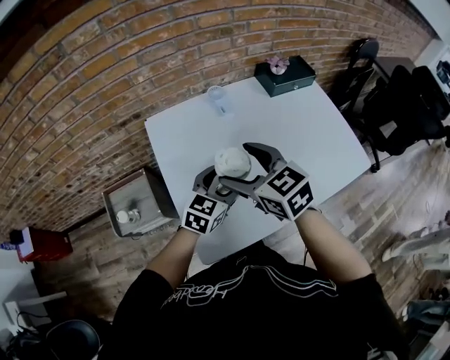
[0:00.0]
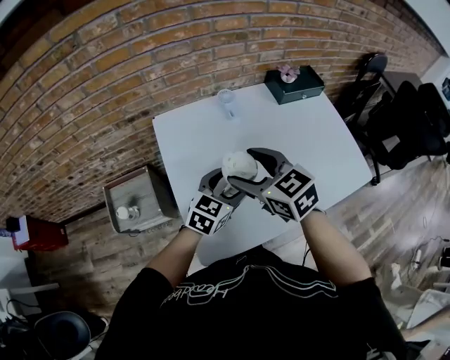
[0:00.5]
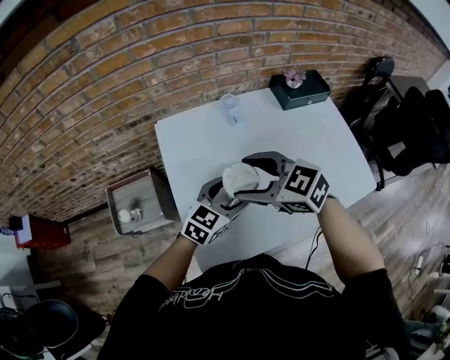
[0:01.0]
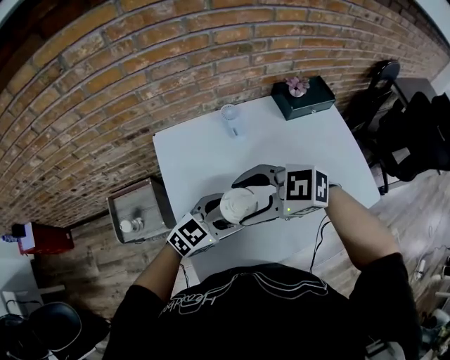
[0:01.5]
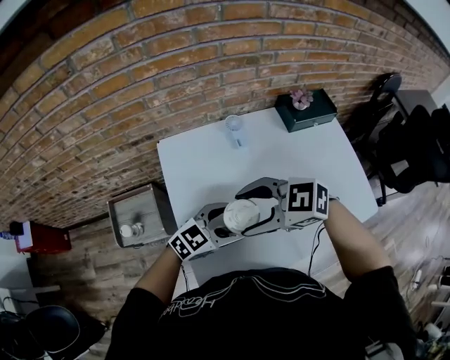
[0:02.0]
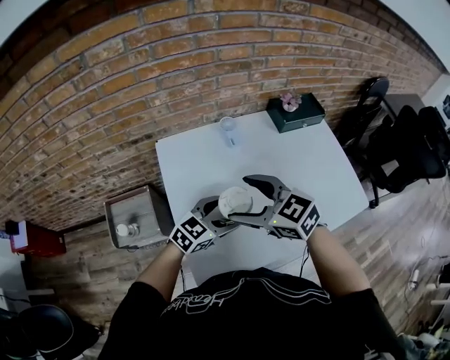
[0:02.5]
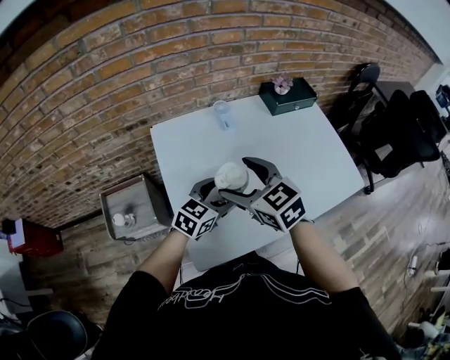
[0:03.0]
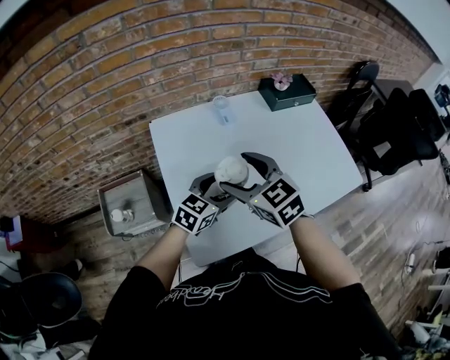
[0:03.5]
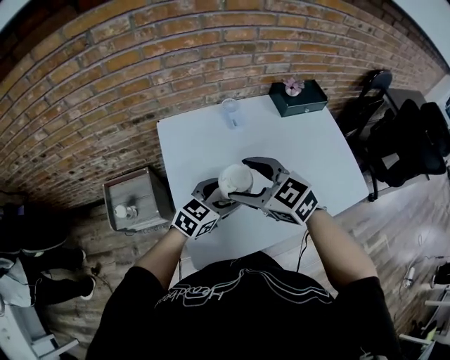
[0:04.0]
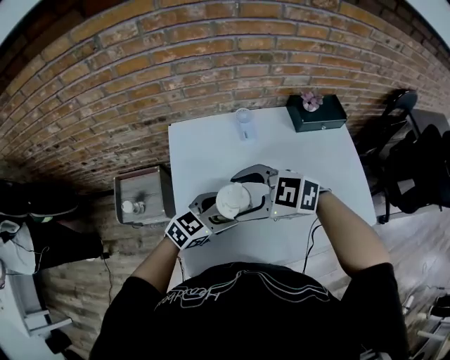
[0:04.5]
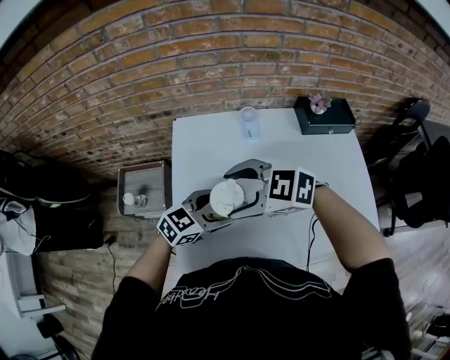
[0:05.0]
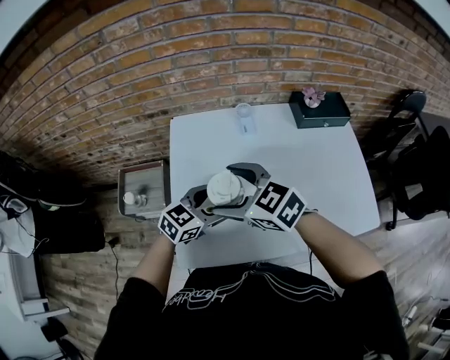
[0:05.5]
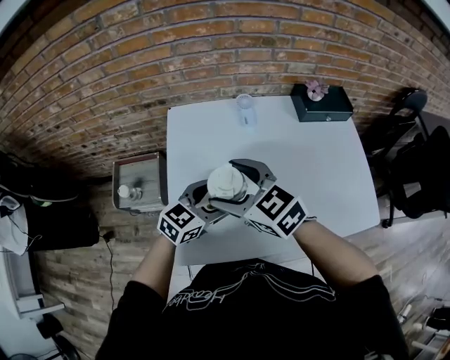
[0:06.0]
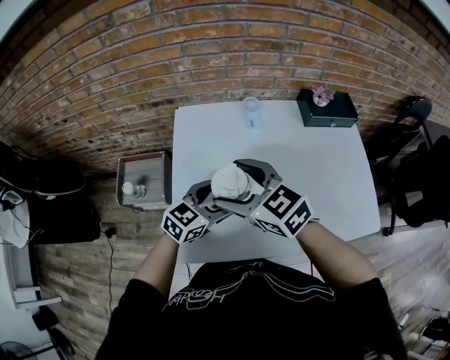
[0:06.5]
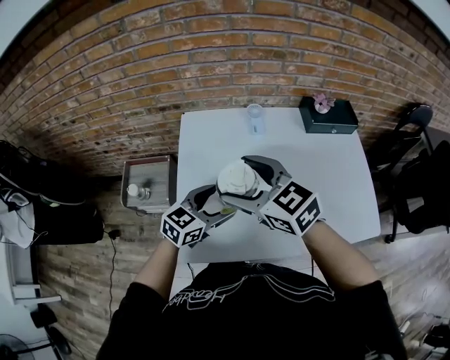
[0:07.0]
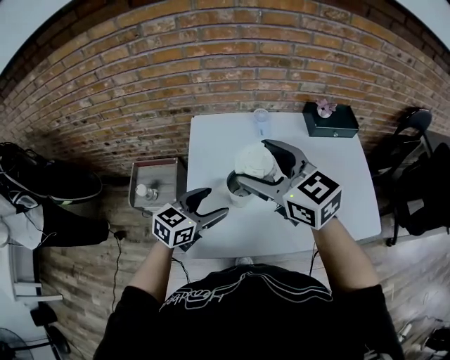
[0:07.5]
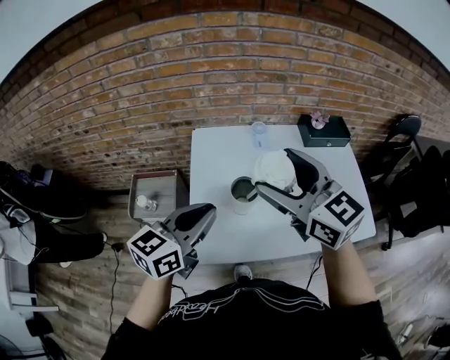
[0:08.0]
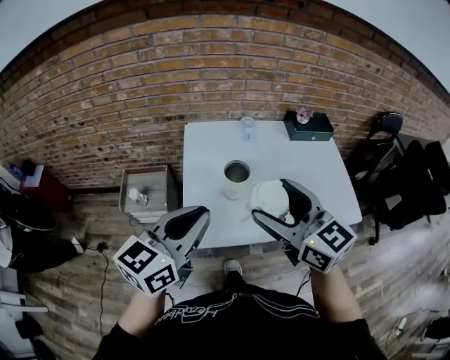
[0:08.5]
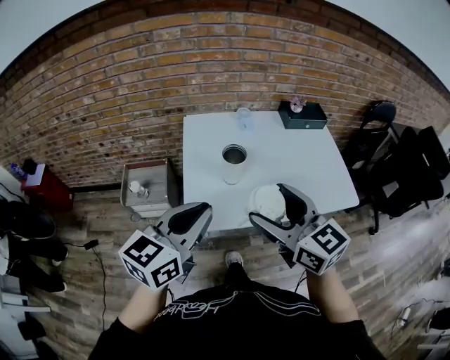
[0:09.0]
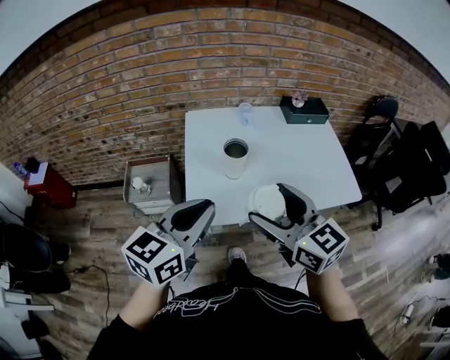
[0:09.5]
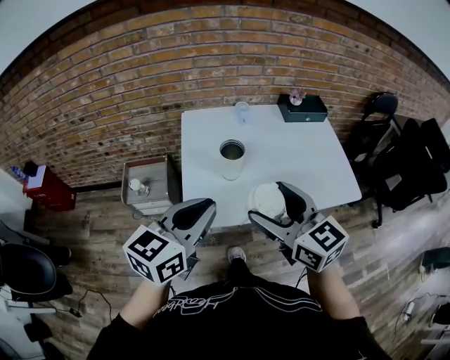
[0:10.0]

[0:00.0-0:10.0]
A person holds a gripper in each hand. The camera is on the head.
0:00.0 to 0:02.0: The right gripper rotates about 50 degrees. The left gripper changes its angle by roughly 20 degrees.
0:02.0 to 0:04.0: The right gripper turns by about 30 degrees.
0:06.0 to 0:08.0: The right gripper heads upward, covering roughly 20 cm, and rotates some 20 degrees, while the left gripper moves upward, to the left and backward, about 20 cm, rotates approximately 20 degrees, and closes.
0:08.0 to 0:10.0: Both grippers travel together backward, approximately 15 cm.

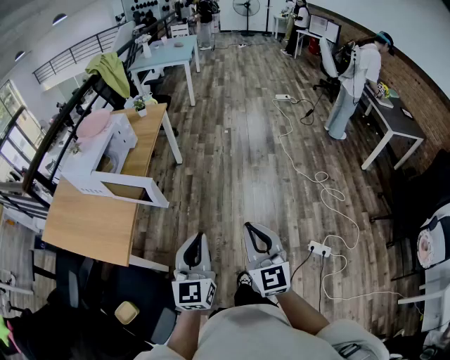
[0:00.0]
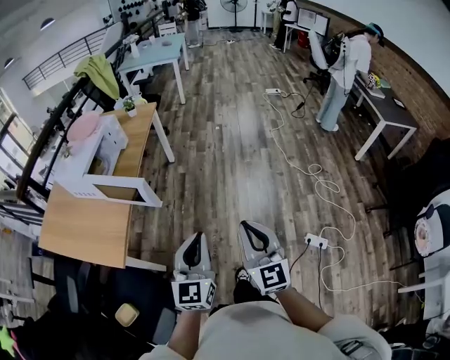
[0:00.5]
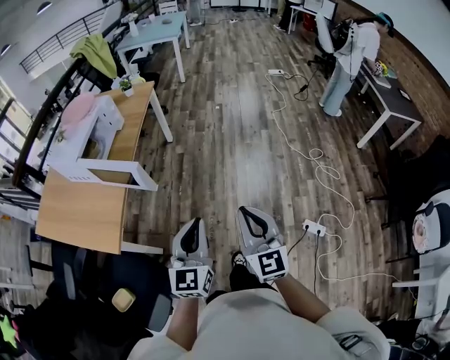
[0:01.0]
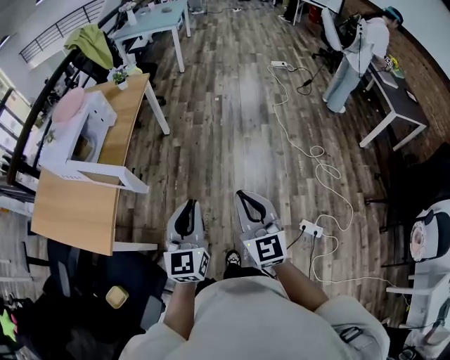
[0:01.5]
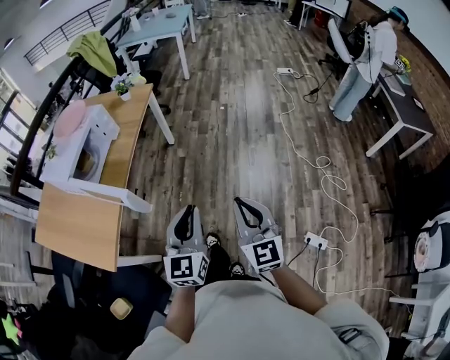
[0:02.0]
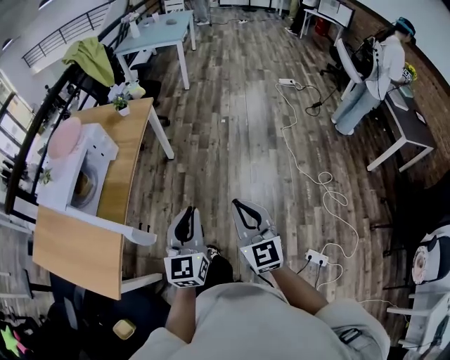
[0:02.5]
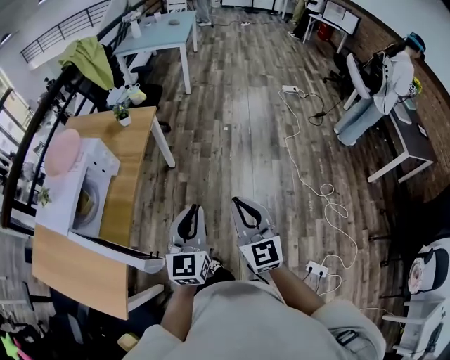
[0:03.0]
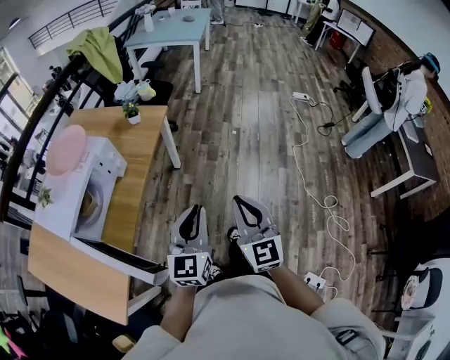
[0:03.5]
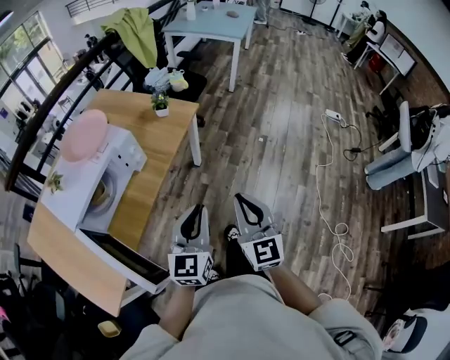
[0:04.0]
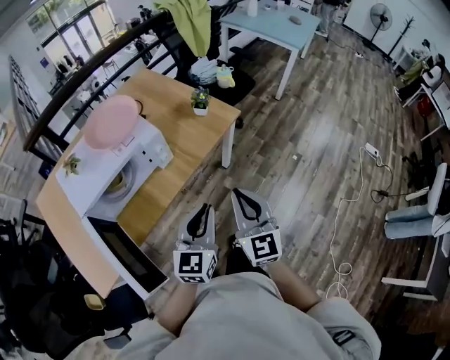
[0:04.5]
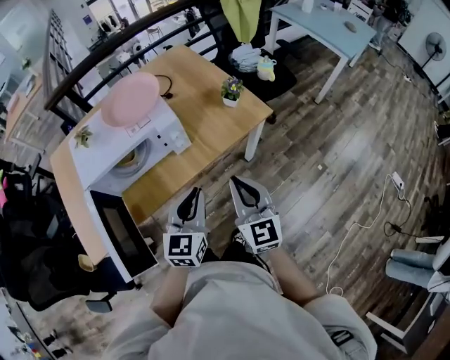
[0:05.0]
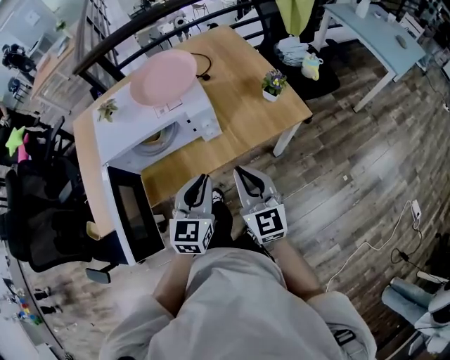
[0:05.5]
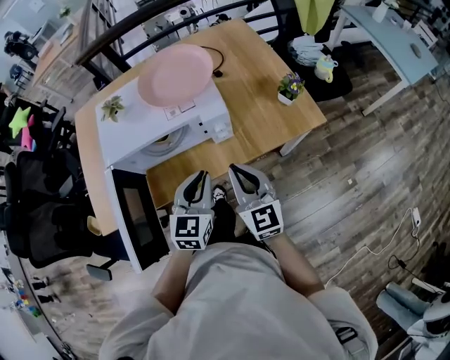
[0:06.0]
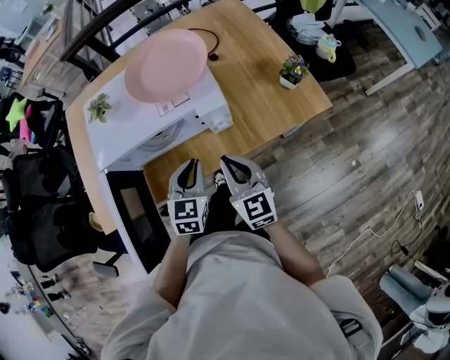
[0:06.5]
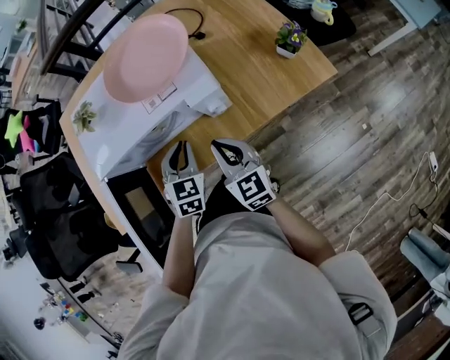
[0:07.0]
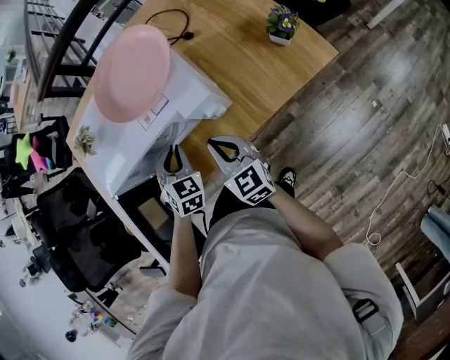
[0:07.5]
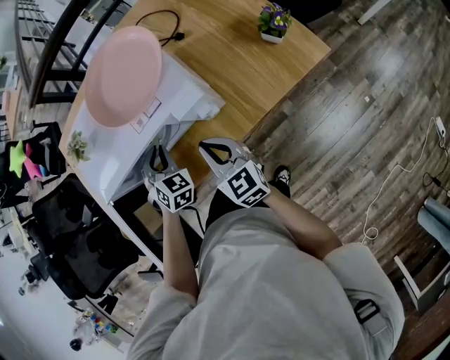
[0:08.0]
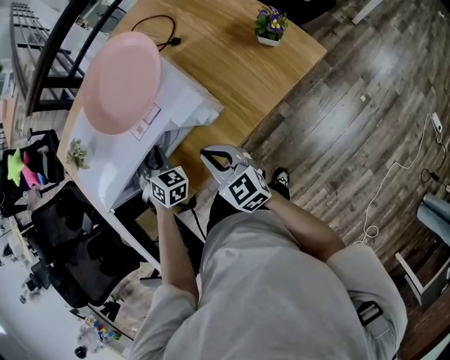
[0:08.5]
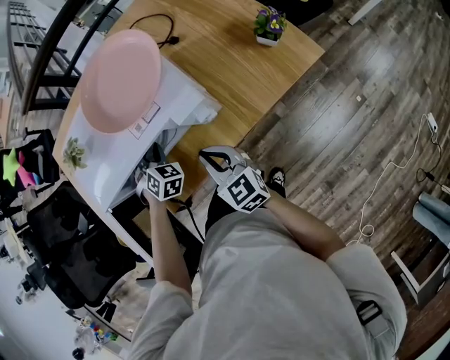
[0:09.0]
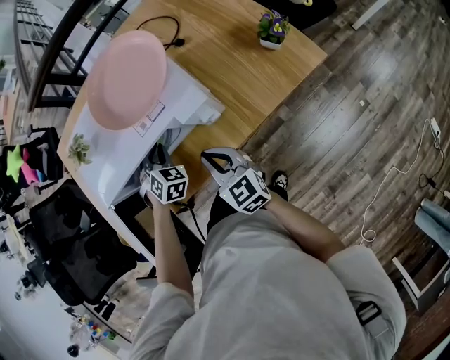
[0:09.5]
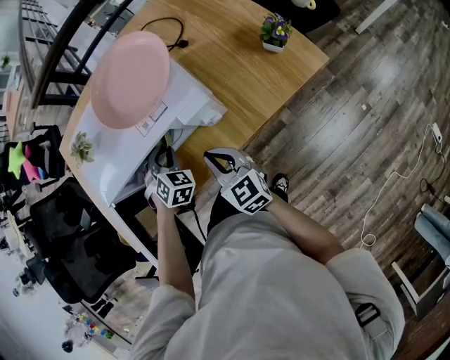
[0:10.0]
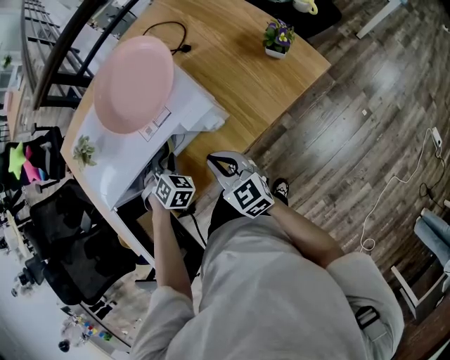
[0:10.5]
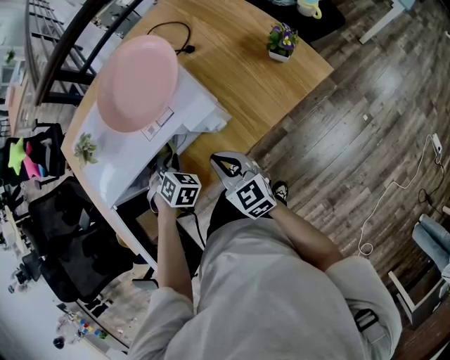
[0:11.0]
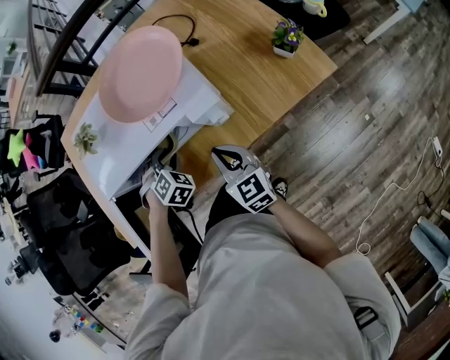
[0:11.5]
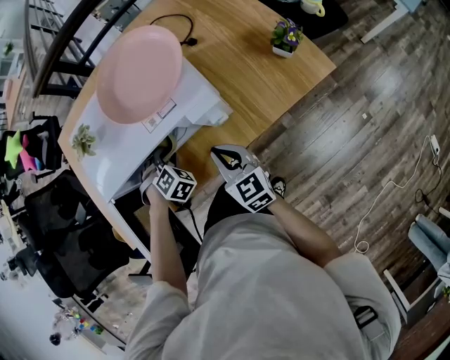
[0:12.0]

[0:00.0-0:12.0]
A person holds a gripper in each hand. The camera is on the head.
0:00.0 to 0:02.0: The two grippers go approximately 15 cm forward.
0:02.0 to 0:04.0: The two grippers go approximately 40 cm forward.
0:04.0 to 0:06.0: The left gripper moves some 25 cm, and turns by some 40 degrees. Meanwhile the right gripper shifts by about 30 cm, and changes its angle by roughly 50 degrees.
0:06.0 to 0:08.0: The right gripper moves downward, forward and to the left, about 15 cm. The left gripper is displaced forward, downward and to the left by some 25 cm, and changes its angle by roughly 50 degrees.
0:08.0 to 0:10.0: There are only small adjustments of the grippers.
0:10.0 to 0:12.0: The left gripper ends up approximately 5 cm from where it was, and rotates about 20 degrees.

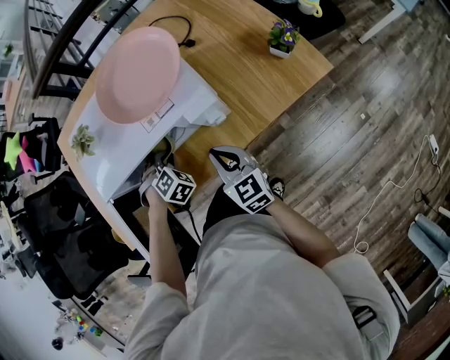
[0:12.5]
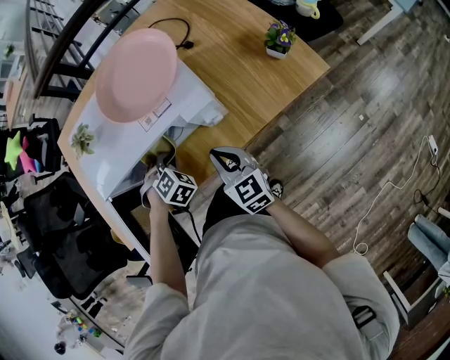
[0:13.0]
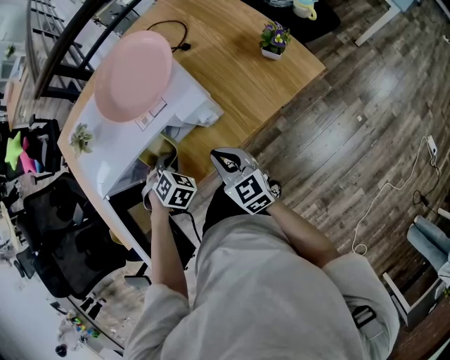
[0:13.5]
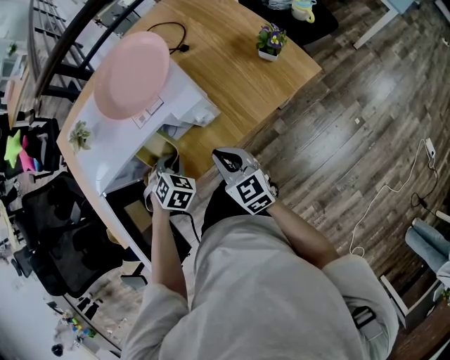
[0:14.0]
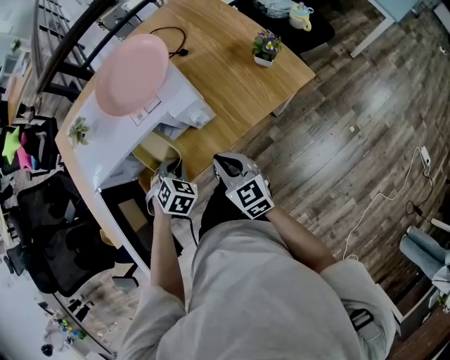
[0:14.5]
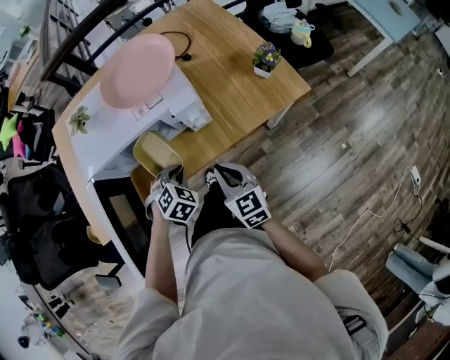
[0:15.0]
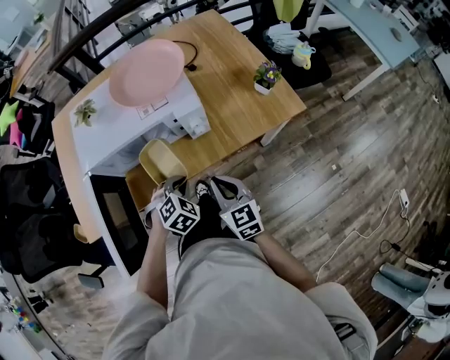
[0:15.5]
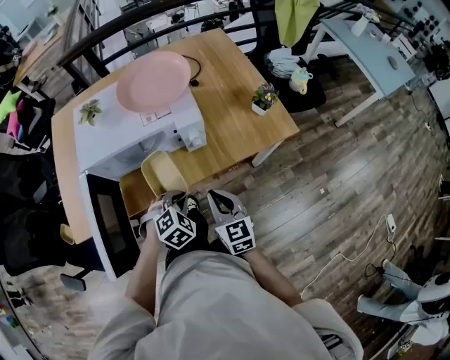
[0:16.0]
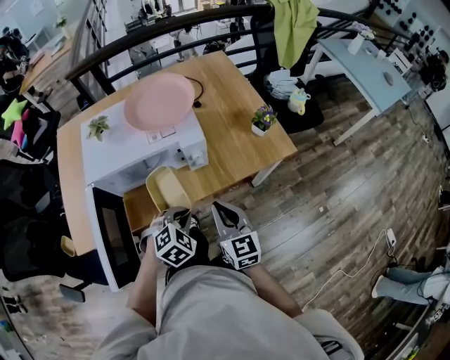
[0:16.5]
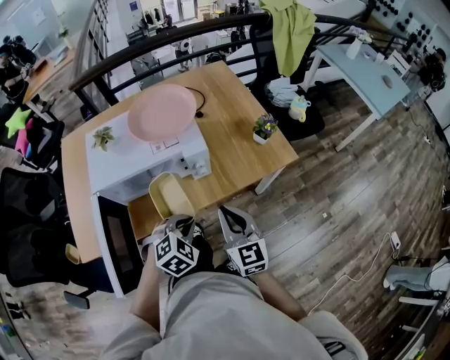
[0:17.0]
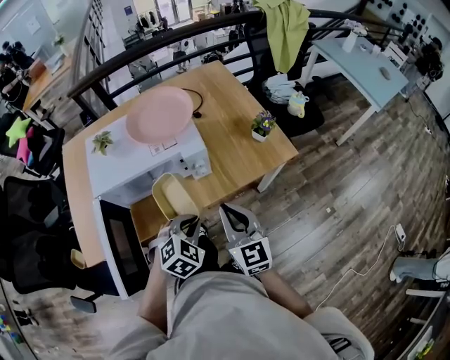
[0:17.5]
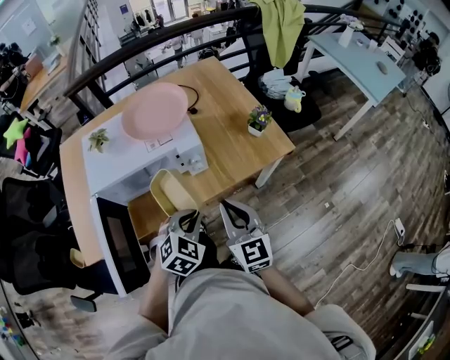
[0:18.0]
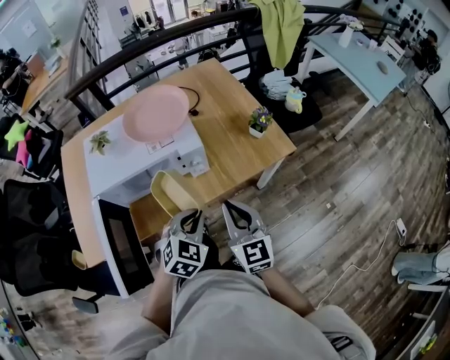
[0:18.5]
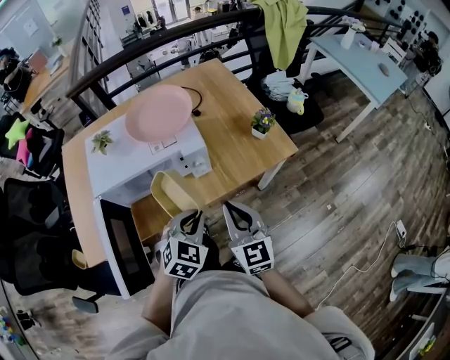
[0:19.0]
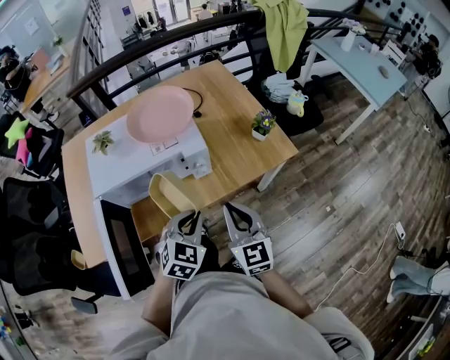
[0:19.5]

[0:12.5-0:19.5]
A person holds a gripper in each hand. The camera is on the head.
0:12.5 to 0:14.5: The right gripper goes roughly 5 cm backward; the left gripper travels backward and to the right by some 10 cm.
0:14.5 to 0:16.0: The left gripper goes some 10 cm backward and to the right. Meanwhile the right gripper travels backward by about 5 cm.
0:16.0 to 0:17.5: The two grippers go roughly 10 cm upward.
0:17.5 to 0:19.5: The grippers move only a little.
